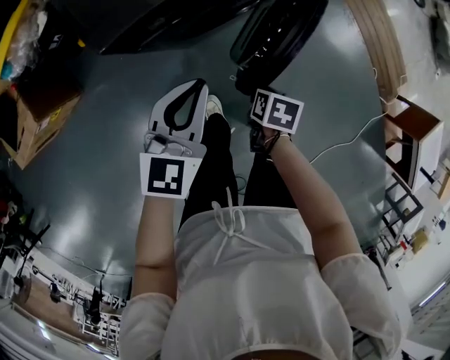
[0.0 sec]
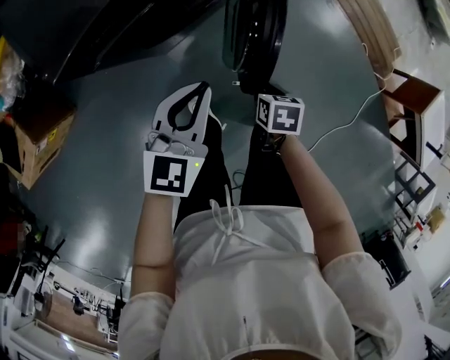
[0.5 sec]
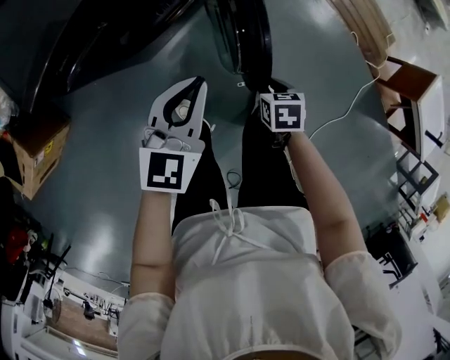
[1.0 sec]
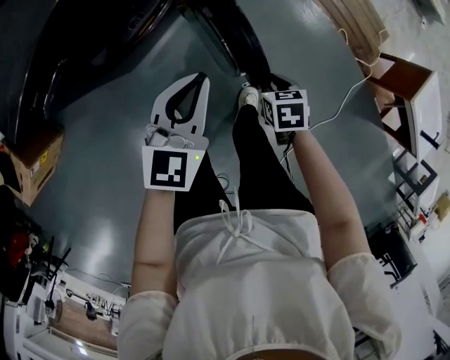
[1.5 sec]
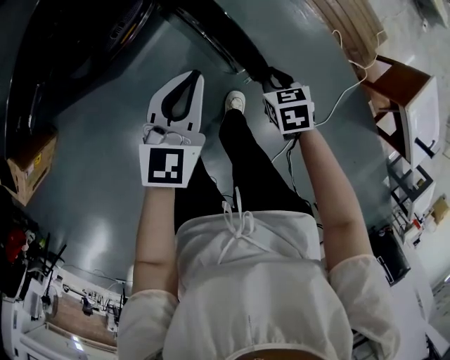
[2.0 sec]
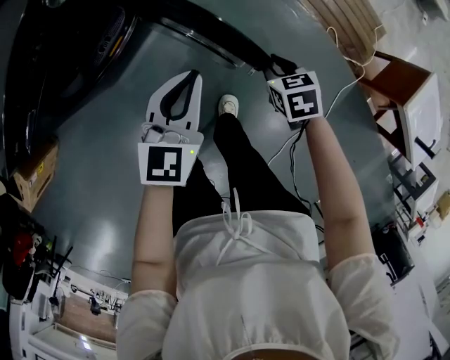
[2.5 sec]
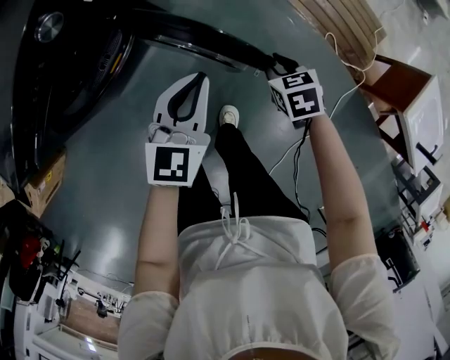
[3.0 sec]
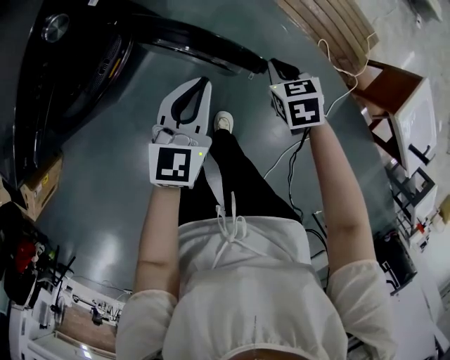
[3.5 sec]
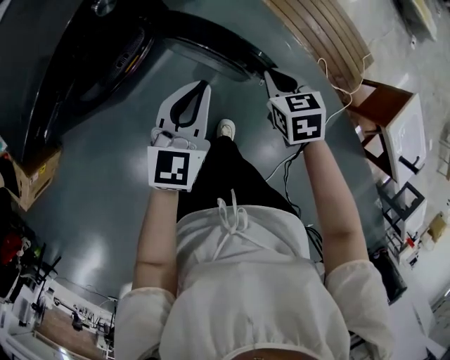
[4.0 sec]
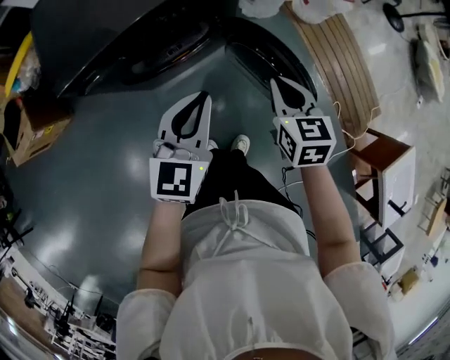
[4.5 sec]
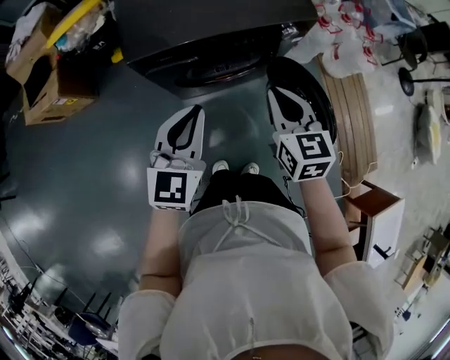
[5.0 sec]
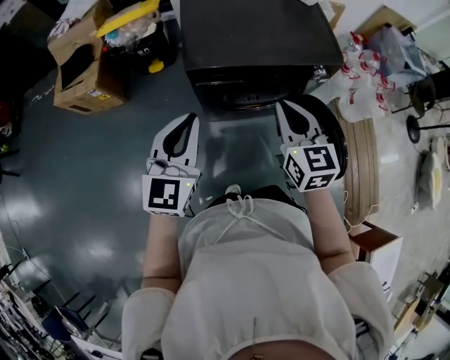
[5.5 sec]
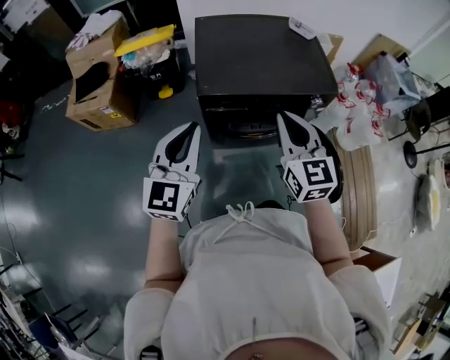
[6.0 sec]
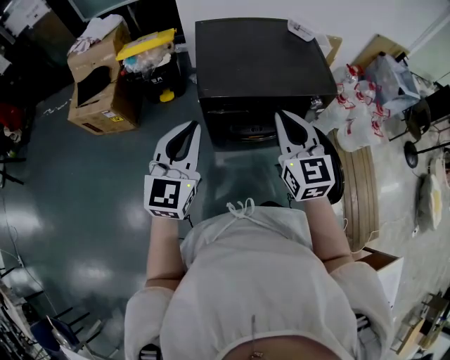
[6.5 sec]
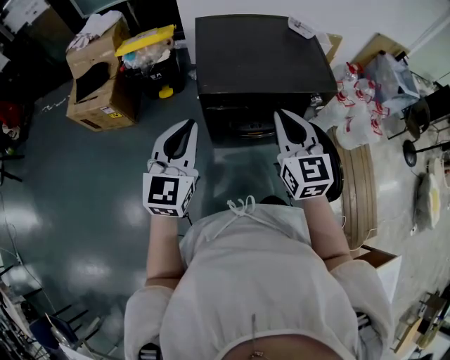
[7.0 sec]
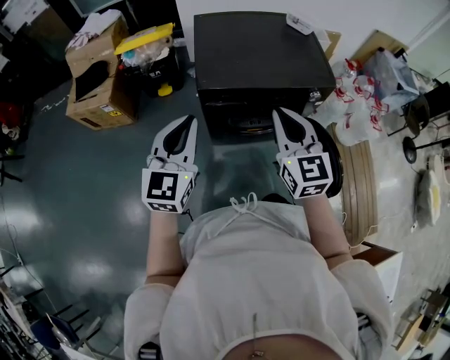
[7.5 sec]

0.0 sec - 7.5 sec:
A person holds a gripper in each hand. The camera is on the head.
0.0 sec - 2.0 sec: Both grippers are carried to the right, some 40 cm. The right gripper turns by about 30 degrees.
2.0 sec - 4.0 sec: The left gripper moves upward, to the right and forward, about 10 cm. The right gripper goes some 15 cm upward and forward.
4.0 sec - 5.5 sec: The two grippers travel together, approximately 50 cm. The right gripper tips its fingers upward by roughly 40 degrees; the left gripper rotates some 40 degrees.
5.5 sec - 7.5 sec: The two grippers go about 5 cm upward.

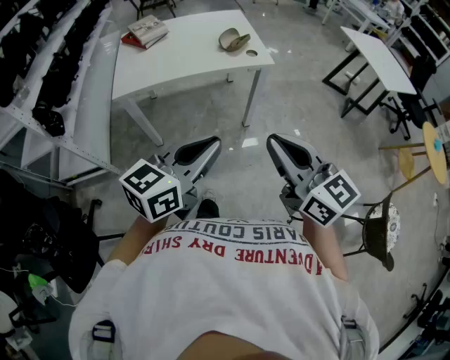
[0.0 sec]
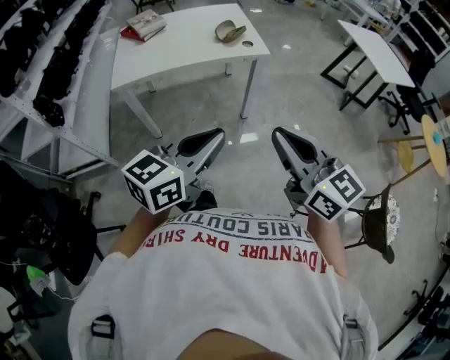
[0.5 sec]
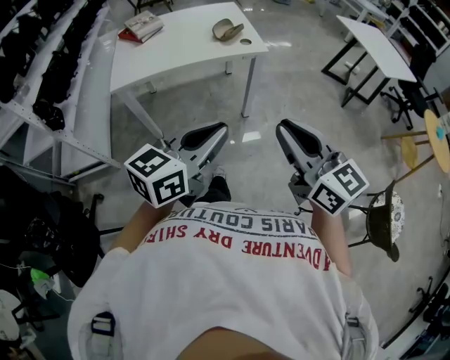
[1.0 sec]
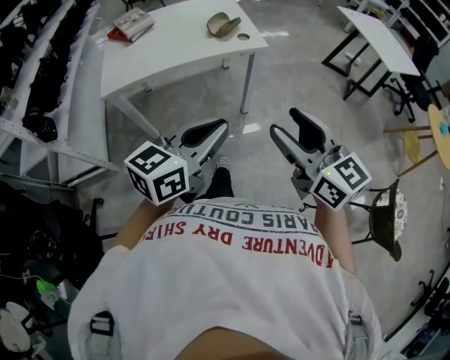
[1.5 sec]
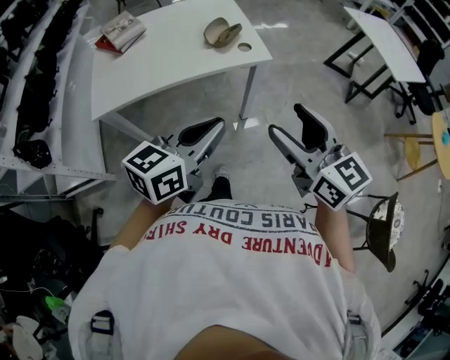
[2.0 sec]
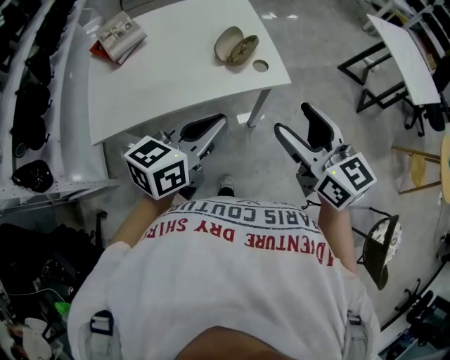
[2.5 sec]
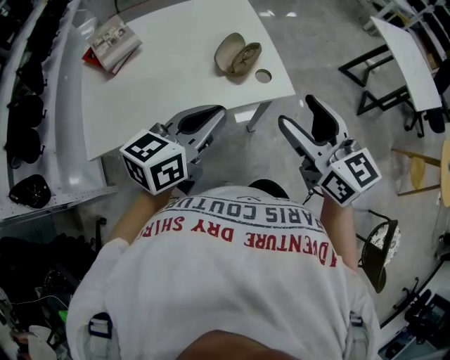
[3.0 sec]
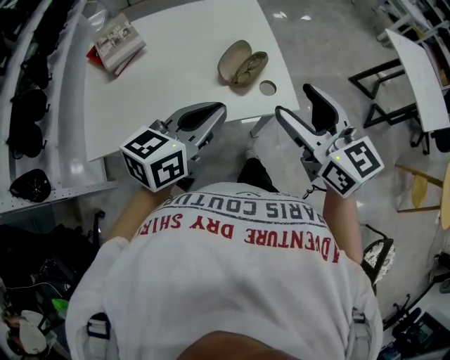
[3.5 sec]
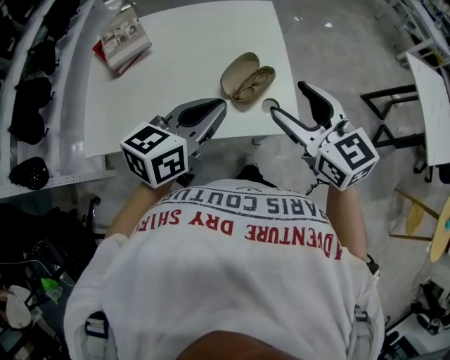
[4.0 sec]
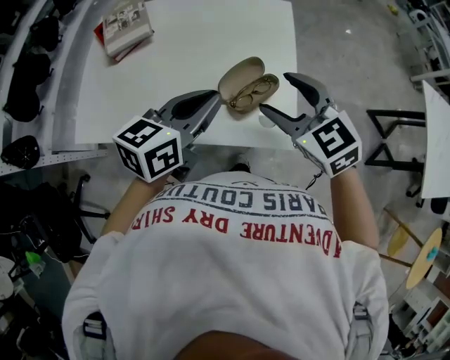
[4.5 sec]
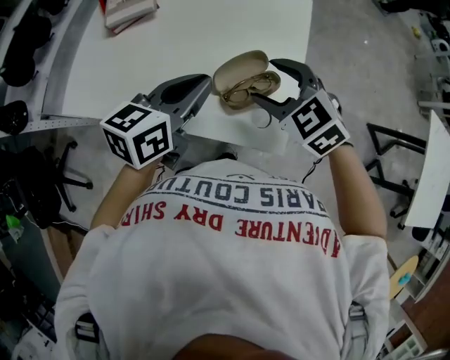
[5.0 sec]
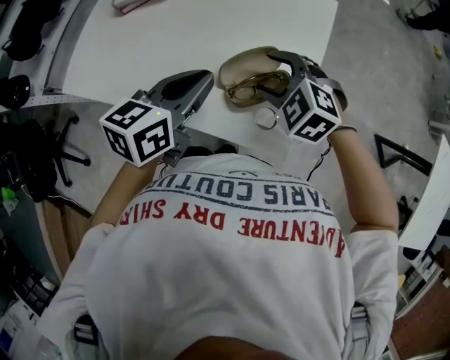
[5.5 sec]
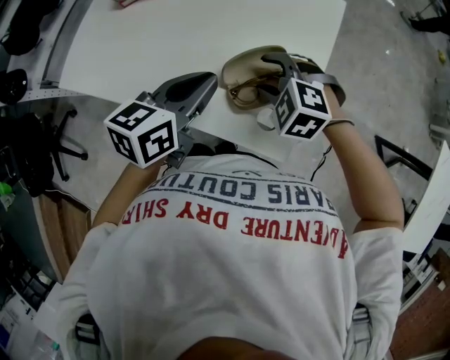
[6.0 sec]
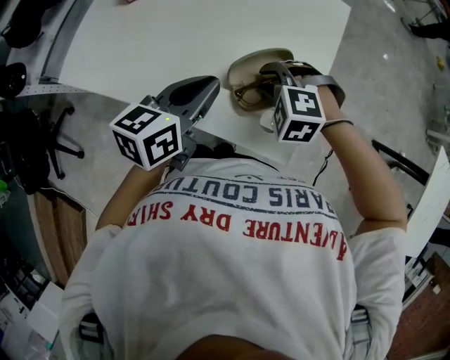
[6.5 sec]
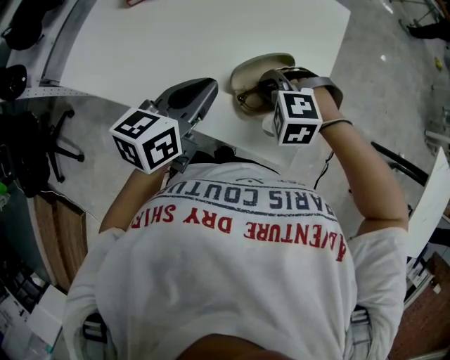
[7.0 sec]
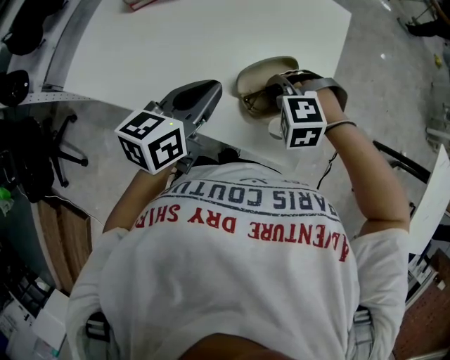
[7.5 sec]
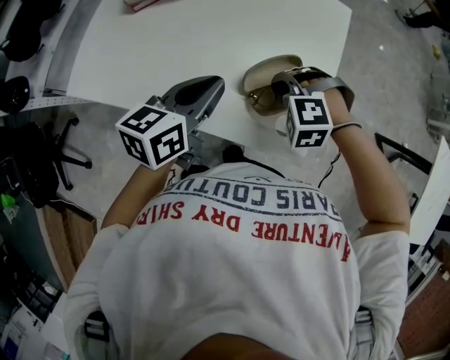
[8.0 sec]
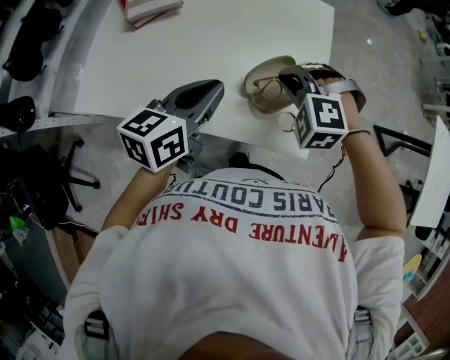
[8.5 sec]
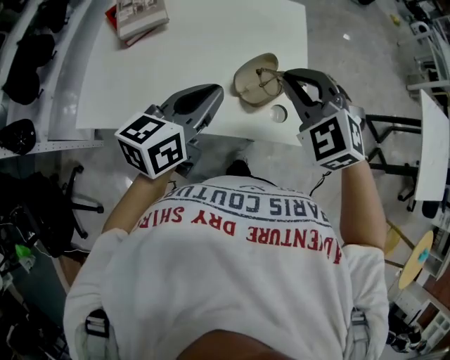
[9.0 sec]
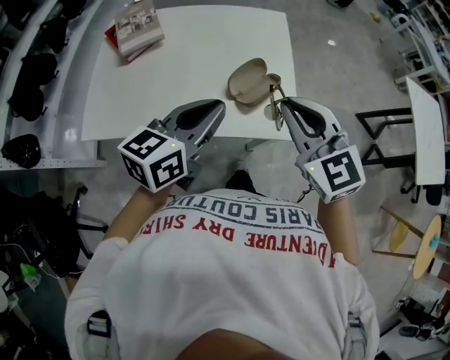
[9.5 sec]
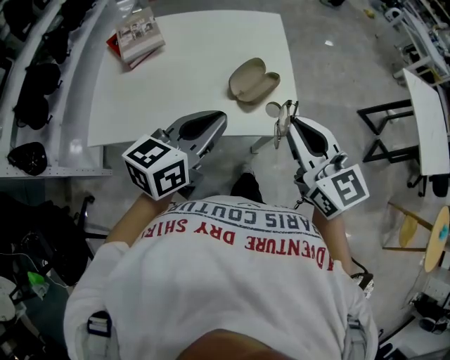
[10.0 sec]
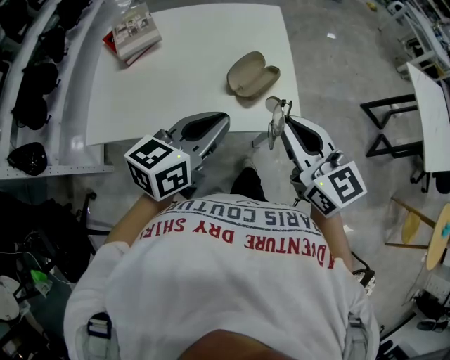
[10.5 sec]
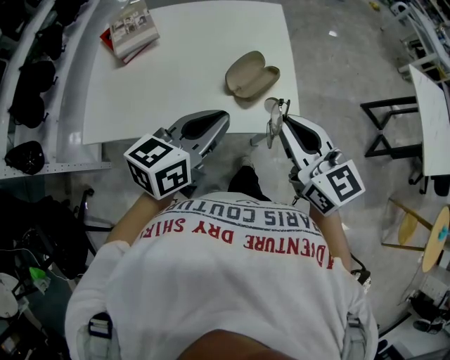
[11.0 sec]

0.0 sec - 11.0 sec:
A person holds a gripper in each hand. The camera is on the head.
0.0 sec - 2.0 sec: The two grippers go some 15 cm forward. The right gripper opens.
2.0 sec - 3.5 sec: Both grippers move forward, about 30 cm.
3.5 sec - 5.5 sec: The right gripper moves about 30 cm, and tilts its fingers about 40 degrees downward. Meanwhile the left gripper shifts by some 15 cm, and changes its angle by approximately 40 degrees.
5.5 sec - 7.5 sec: The right gripper heads downward, covering approximately 5 cm, changes its angle by about 30 degrees, and closes up.
7.5 sec - 9.0 sec: The right gripper travels upward by some 20 cm, and tilts its fingers approximately 30 degrees upward; the left gripper is displaced upward by roughly 10 cm.
9.0 sec - 11.0 sec: The left gripper heads backward, covering about 5 cm, while the right gripper moves backward, about 10 cm, and rolls clockwise, seen from behind, by some 50 degrees.

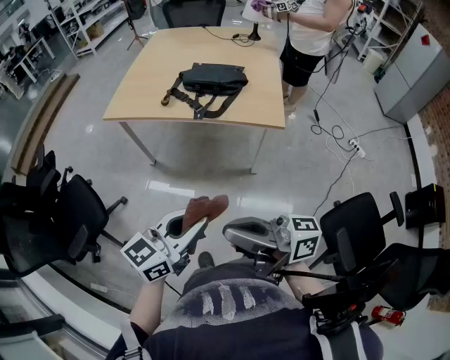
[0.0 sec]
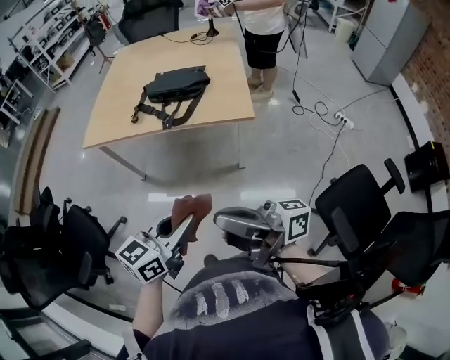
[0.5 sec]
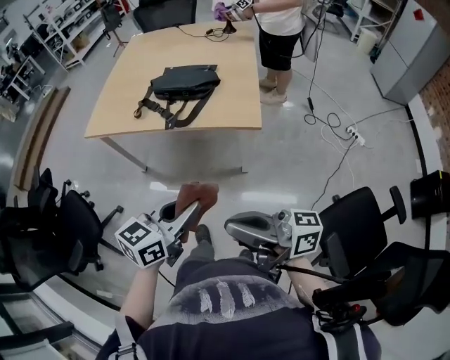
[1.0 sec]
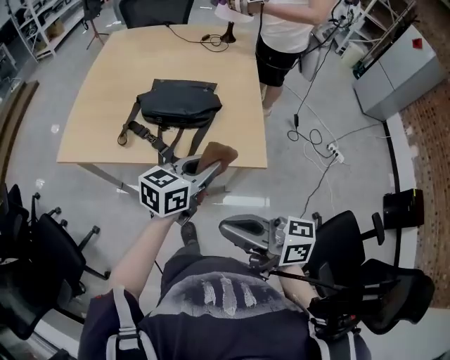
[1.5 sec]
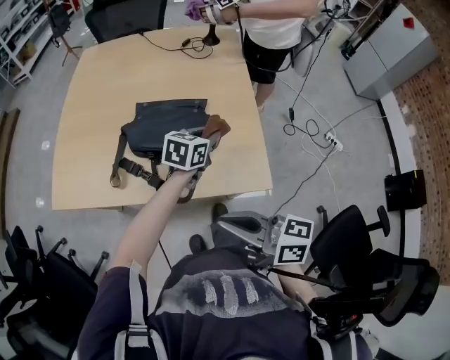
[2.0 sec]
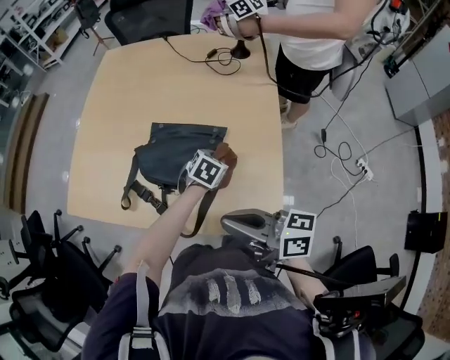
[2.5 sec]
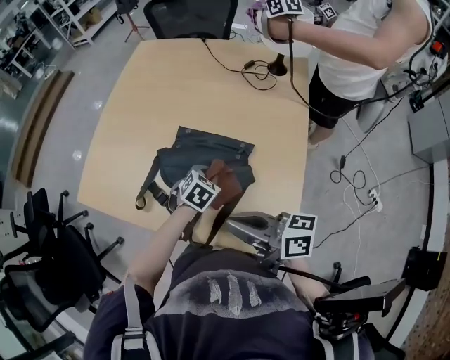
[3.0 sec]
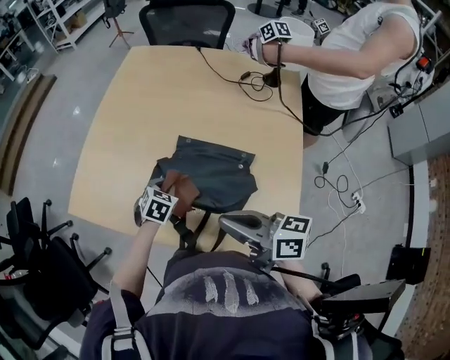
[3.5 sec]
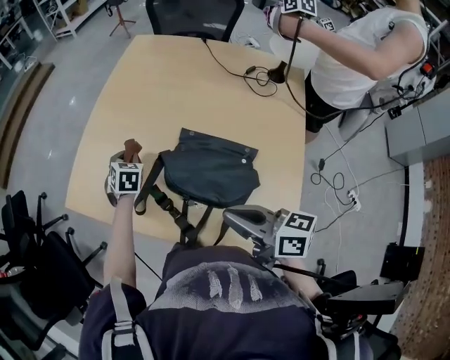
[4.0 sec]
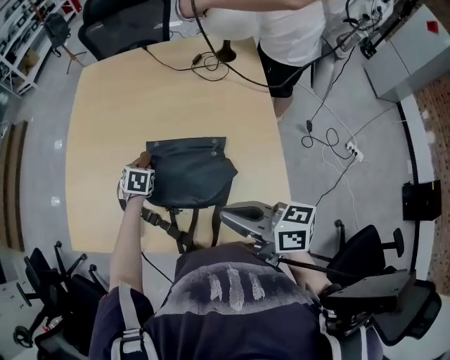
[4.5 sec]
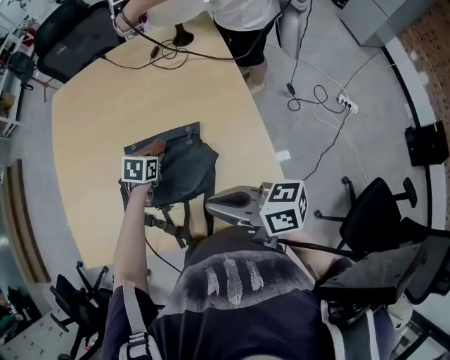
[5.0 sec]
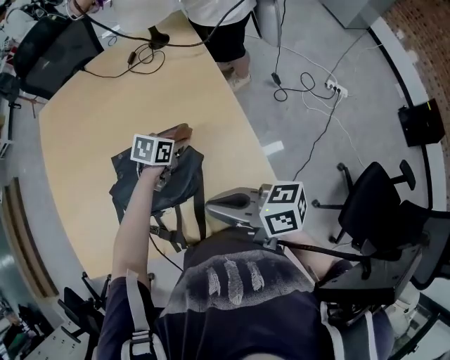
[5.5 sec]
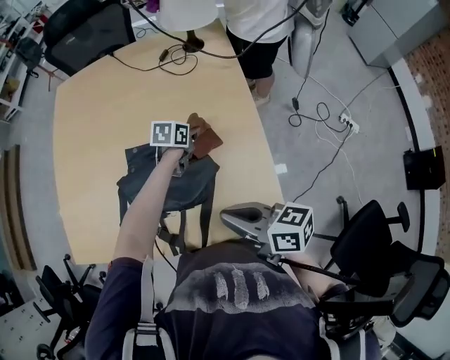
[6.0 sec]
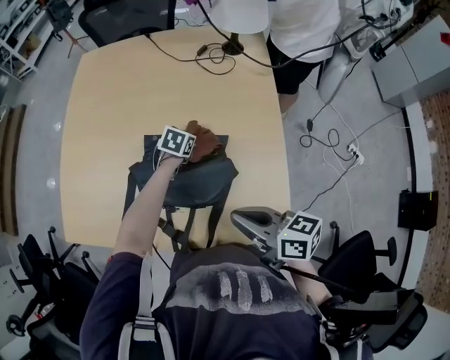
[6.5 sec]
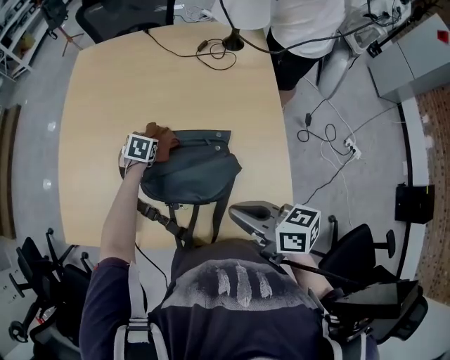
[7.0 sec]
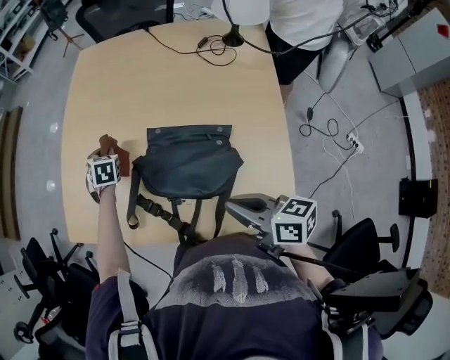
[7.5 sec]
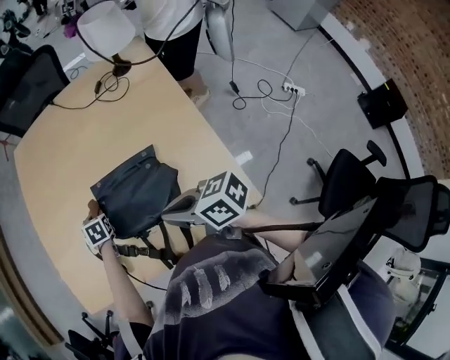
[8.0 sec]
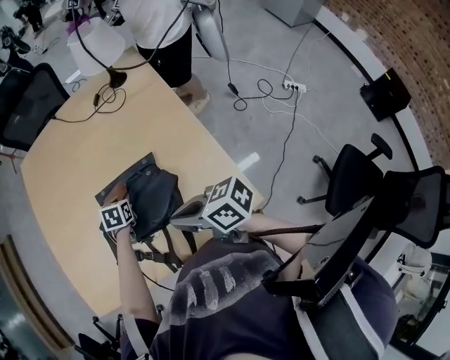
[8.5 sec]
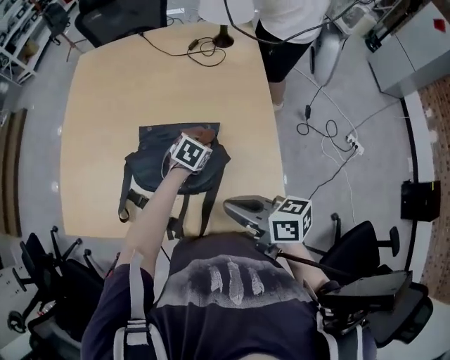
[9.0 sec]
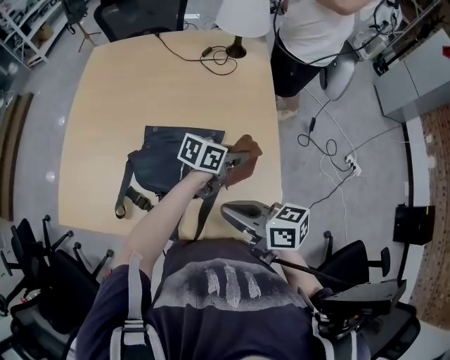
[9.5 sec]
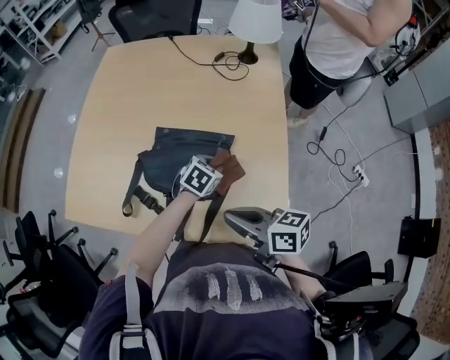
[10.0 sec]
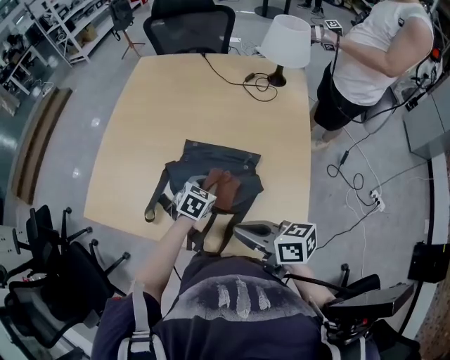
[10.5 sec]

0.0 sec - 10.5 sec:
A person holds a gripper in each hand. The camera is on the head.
0.0 sec - 2.0 sec: The two grippers travel together, forward, approximately 50 cm. The right gripper changes its angle by roughly 30 degrees, while the left gripper rotates some 30 degrees.
2.0 sec - 4.0 sec: The right gripper changes place by approximately 20 cm; the left gripper ends up approximately 50 cm from where it was, and changes its angle by about 60 degrees.
4.0 sec - 6.5 sec: The left gripper shifts by about 35 cm, and swivels about 40 degrees. The right gripper moves about 10 cm.
8.5 sec - 10.5 sec: The left gripper travels upward and back again, approximately 10 cm each way.
